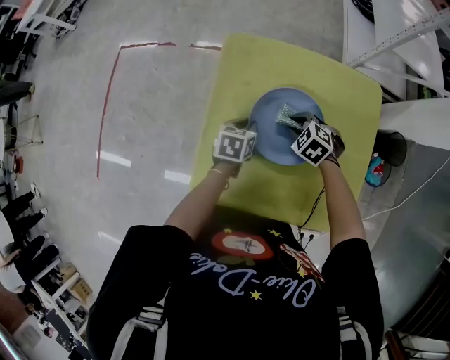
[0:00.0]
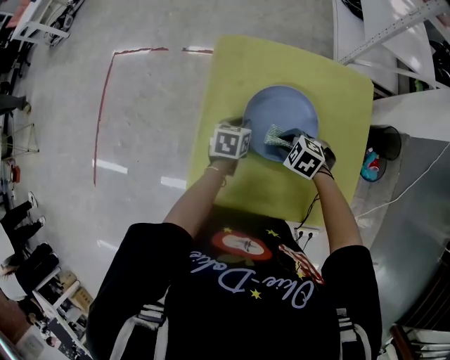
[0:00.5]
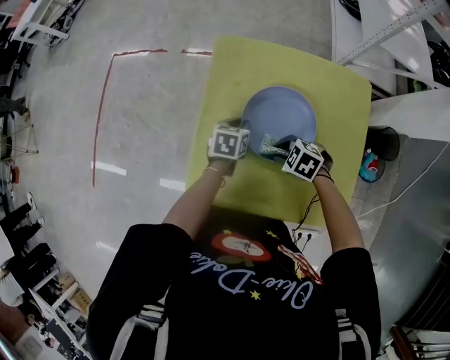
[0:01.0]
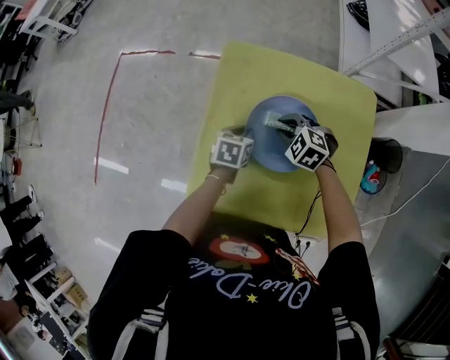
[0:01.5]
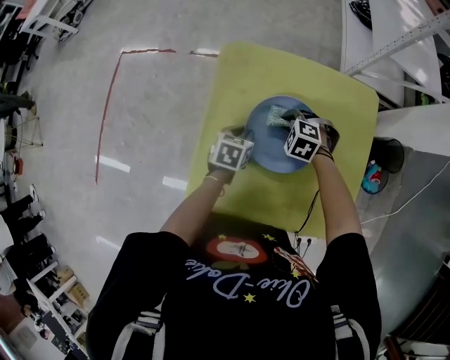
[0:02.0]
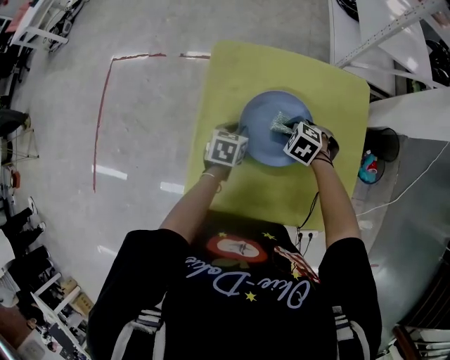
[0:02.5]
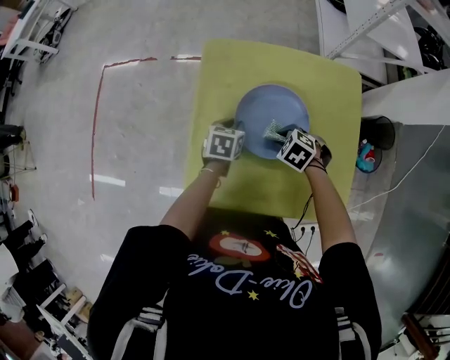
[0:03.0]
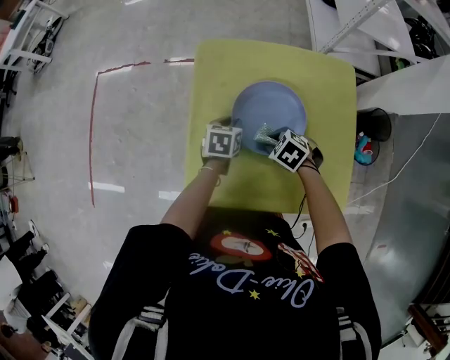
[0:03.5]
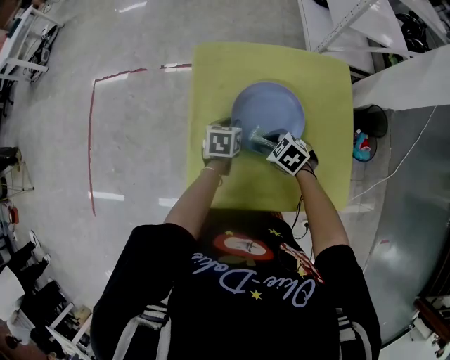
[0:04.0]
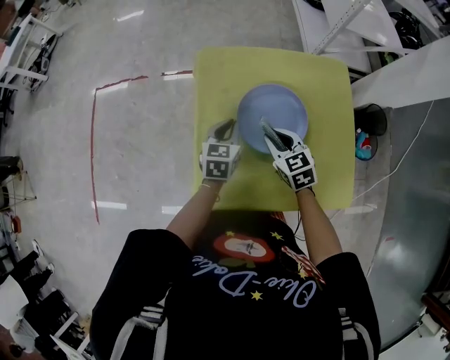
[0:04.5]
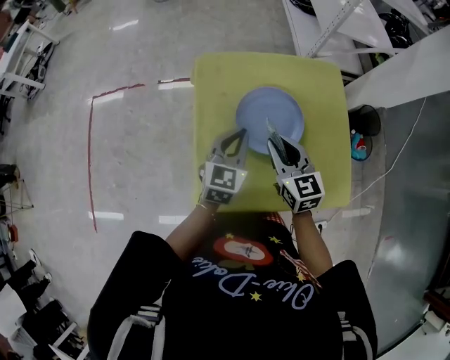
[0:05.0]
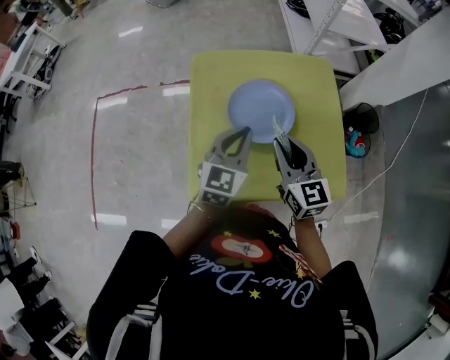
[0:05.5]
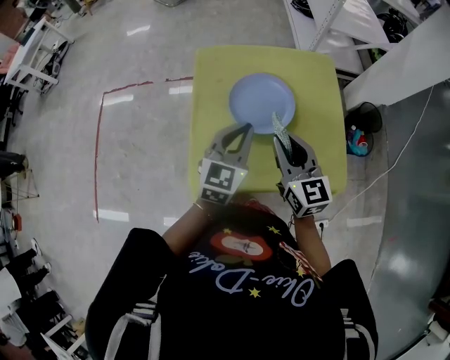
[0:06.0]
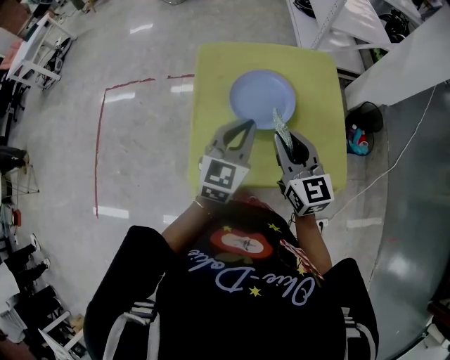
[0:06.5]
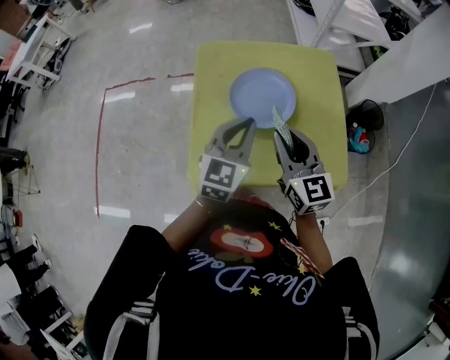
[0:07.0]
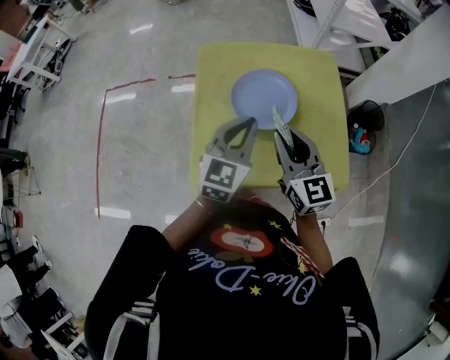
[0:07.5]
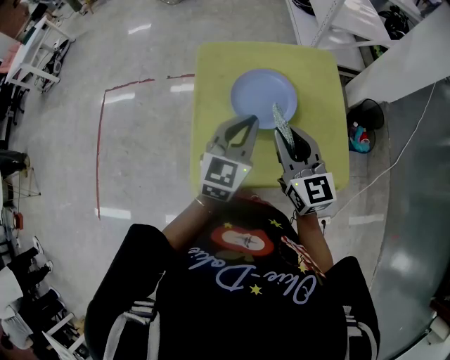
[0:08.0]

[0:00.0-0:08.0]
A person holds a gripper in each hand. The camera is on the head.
0:02.0 to 0:04.0: The right gripper moves about 10 cm, and swivels some 40 degrees.
0:04.0 to 0:06.0: The left gripper shifts about 25 cm upward and backward, and angles its fingers upward, by some 30 degrees. Meanwhile the right gripper travels upward by roughly 25 cm, and points its fingers some 50 degrees further upward.
0:06.0 to 0:08.0: The grippers stay close to where they were, moving slightly.

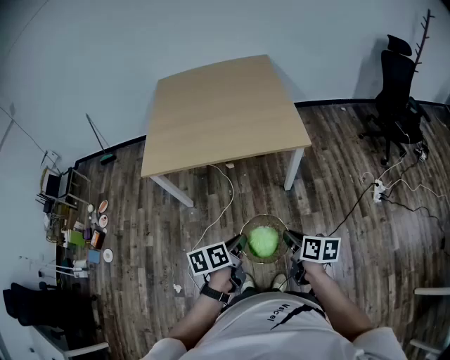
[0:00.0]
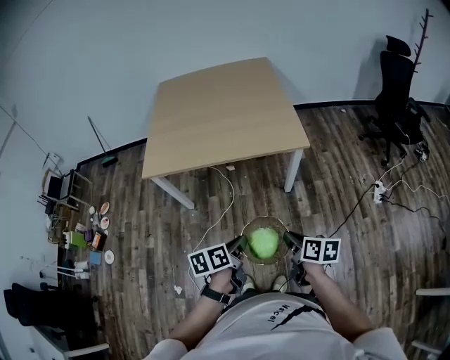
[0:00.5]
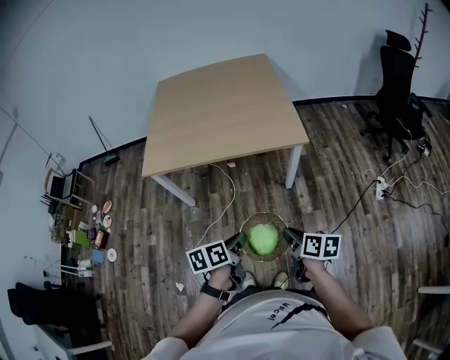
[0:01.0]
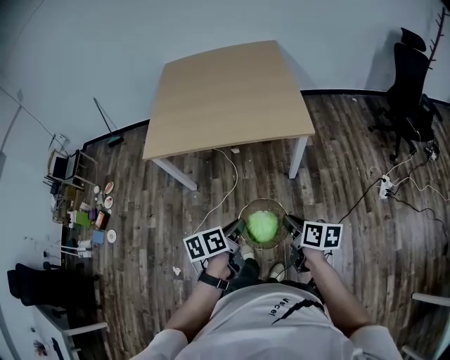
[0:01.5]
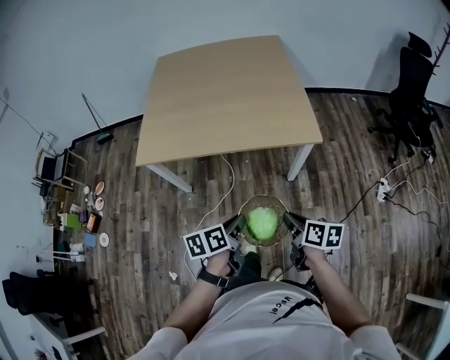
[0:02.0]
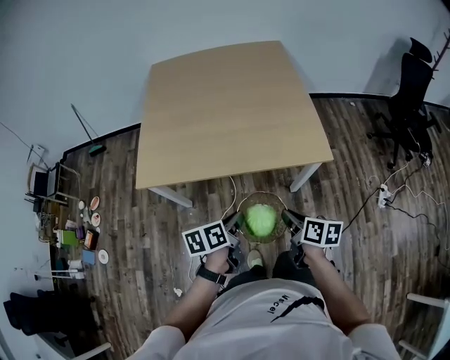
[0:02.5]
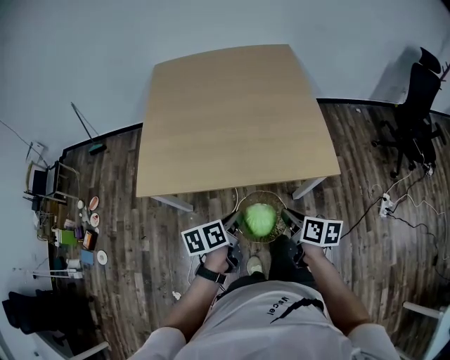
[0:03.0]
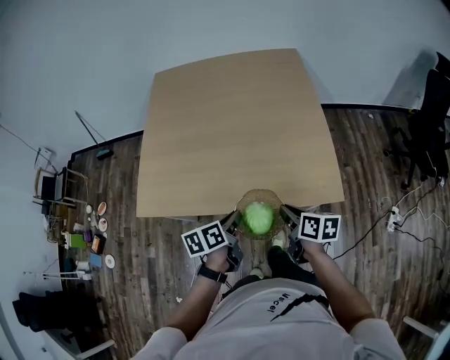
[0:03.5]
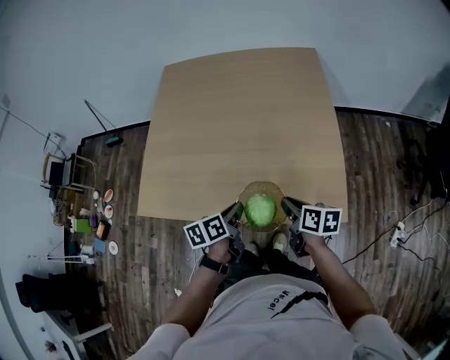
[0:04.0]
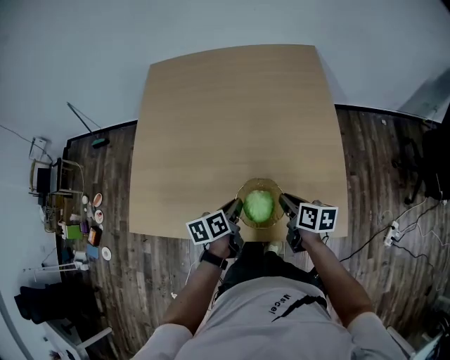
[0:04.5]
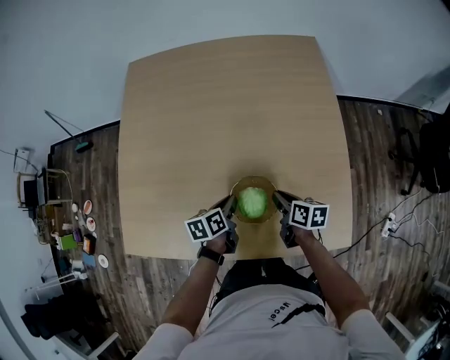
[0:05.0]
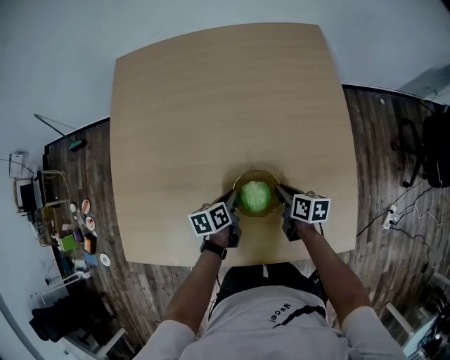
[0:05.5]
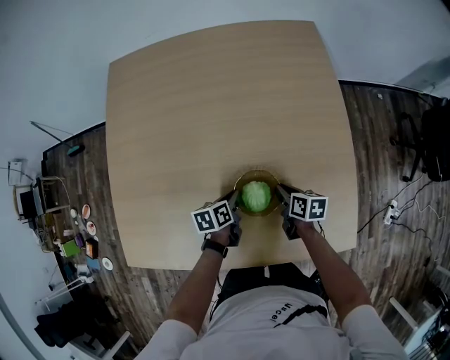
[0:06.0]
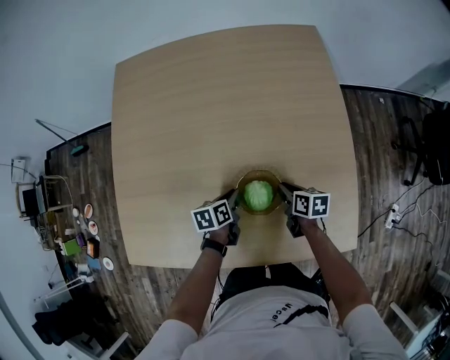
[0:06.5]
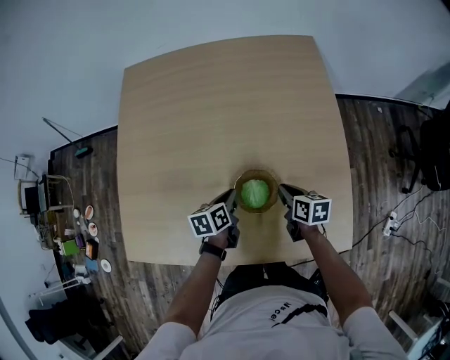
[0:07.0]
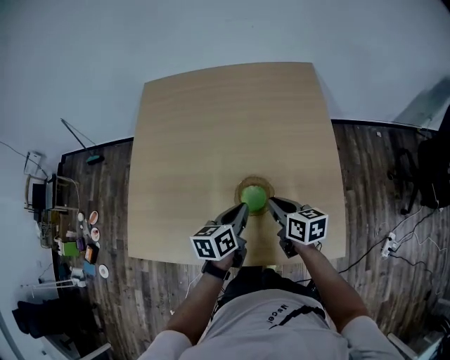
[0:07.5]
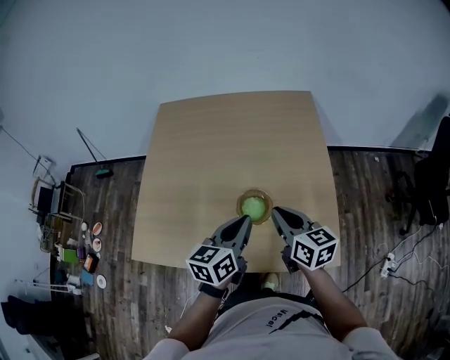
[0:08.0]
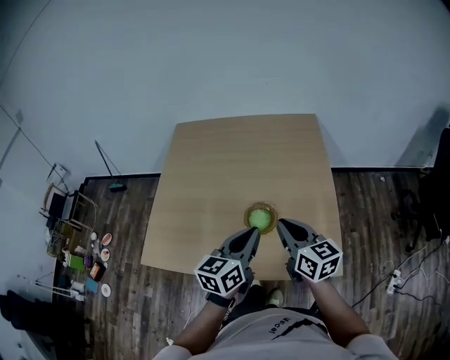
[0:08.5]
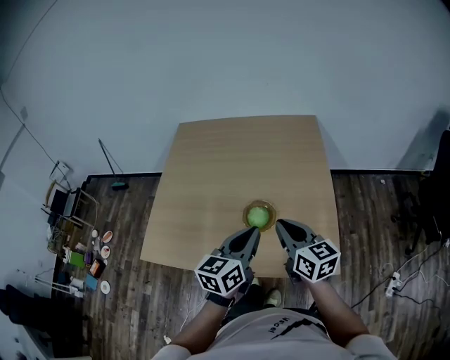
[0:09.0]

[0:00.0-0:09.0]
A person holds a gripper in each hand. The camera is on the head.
0:00.0 to 0:02.0: The two grippers go approximately 10 cm forward.
0:02.0 to 0:04.5: The pair of grippers is taken forward, some 50 cm.
0:04.5 to 0:07.0: The grippers both shift forward and downward by about 15 cm.
0:07.0 to 0:09.0: Both grippers travel together upward and backward, some 35 cm. The left gripper tilts its fingers roughly 30 degrees upward. The right gripper points its fingers about 30 degrees further upward.

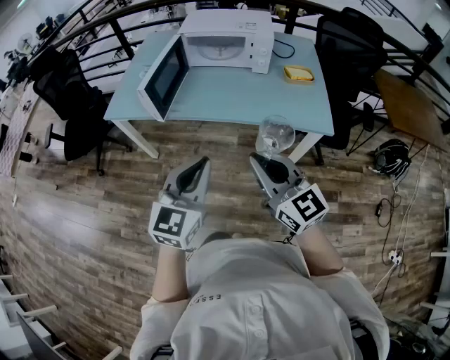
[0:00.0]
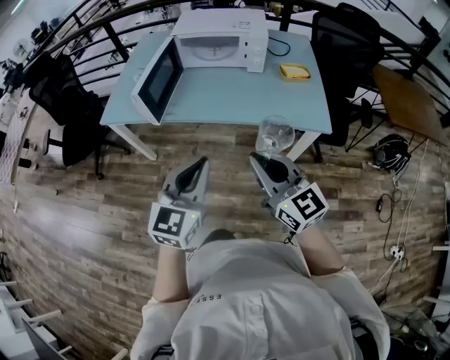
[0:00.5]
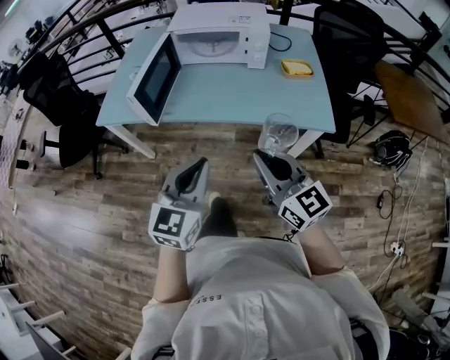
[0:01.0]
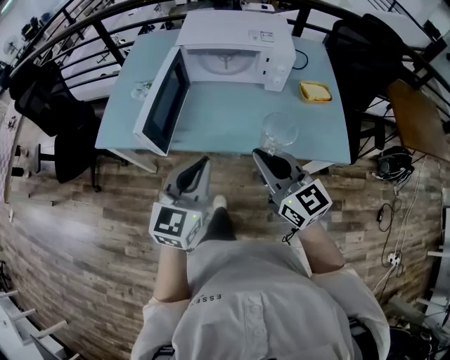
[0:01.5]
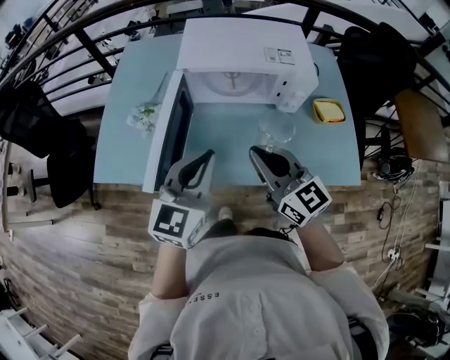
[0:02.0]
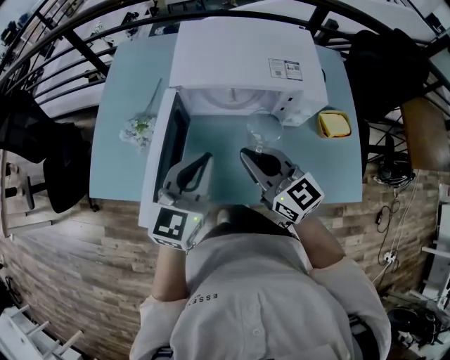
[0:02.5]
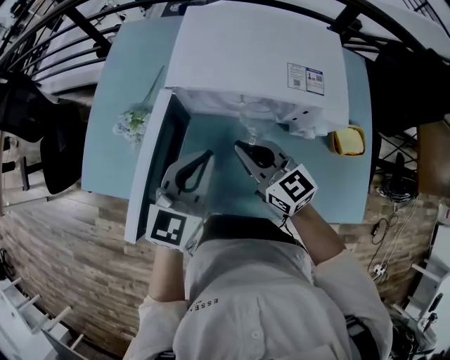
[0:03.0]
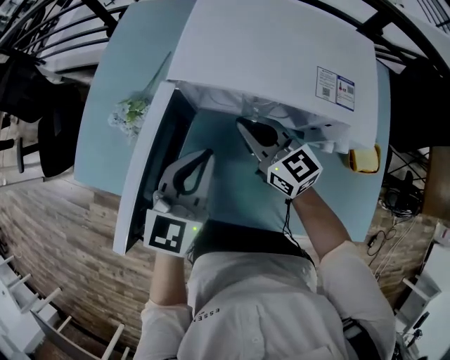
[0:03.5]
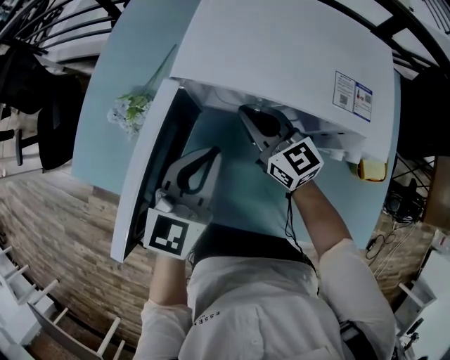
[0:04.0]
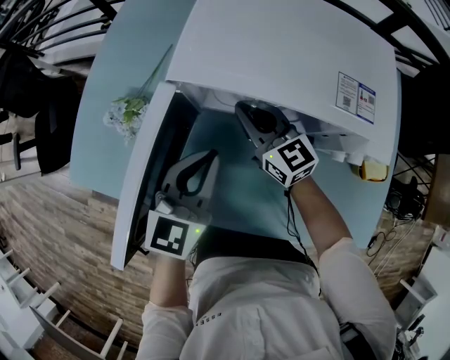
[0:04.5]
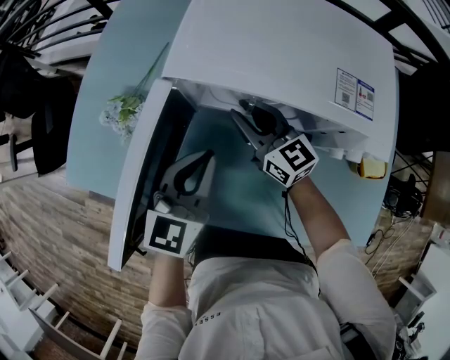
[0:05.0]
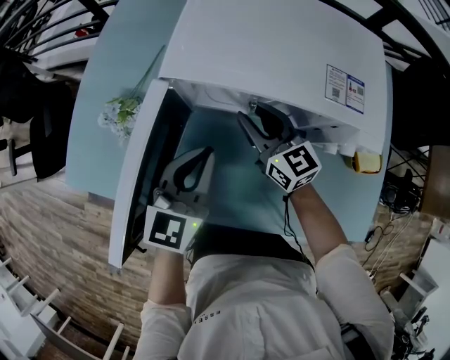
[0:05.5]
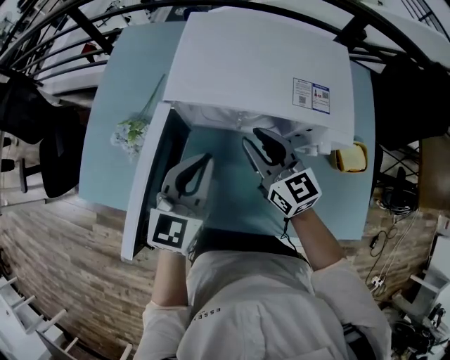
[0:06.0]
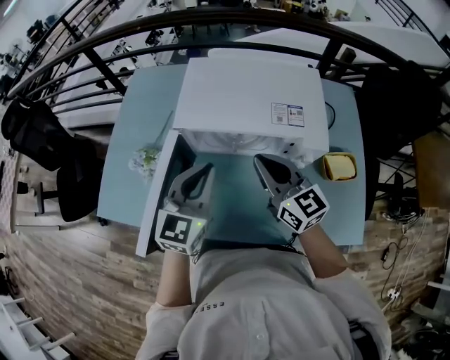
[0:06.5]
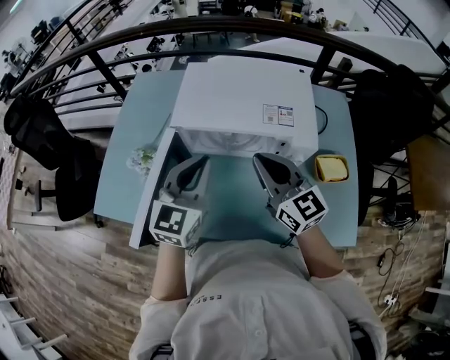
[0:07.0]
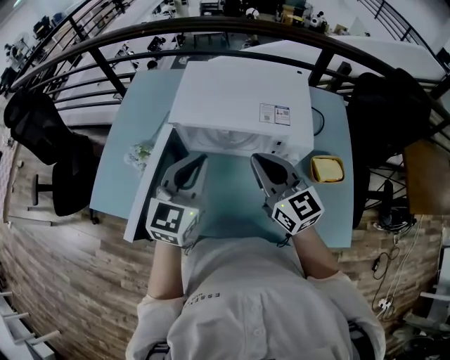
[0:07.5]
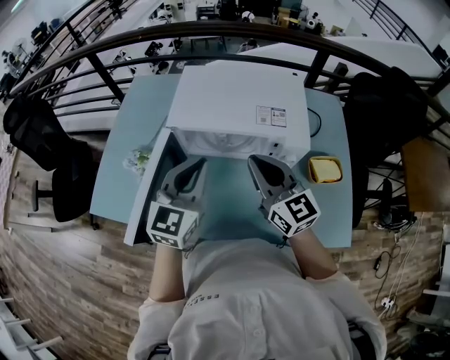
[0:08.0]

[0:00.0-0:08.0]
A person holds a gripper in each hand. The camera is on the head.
0:00.0 to 0:02.0: Both grippers travel together forward, about 40 cm.
0:02.0 to 0:04.0: The left gripper travels forward and downward by some 20 cm, while the right gripper goes about 30 cm forward and downward.
0:04.0 to 0:06.0: The right gripper goes roughly 10 cm upward, backward and to the right, and opens.
0:06.0 to 0:08.0: The left gripper heads upward, covering some 10 cm. The right gripper shifts roughly 15 cm upward and backward, and closes.
